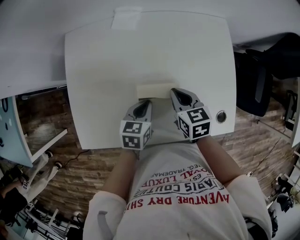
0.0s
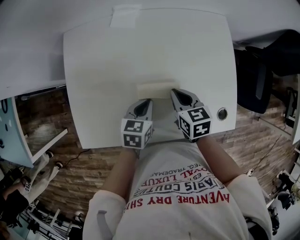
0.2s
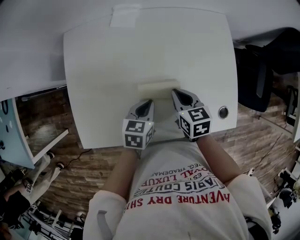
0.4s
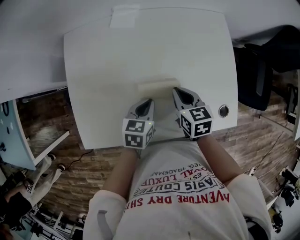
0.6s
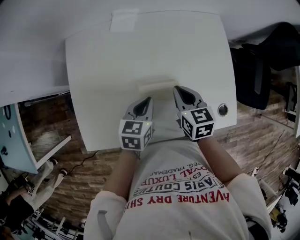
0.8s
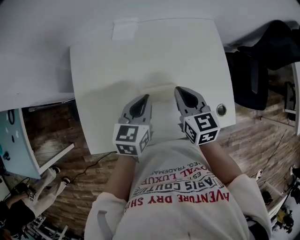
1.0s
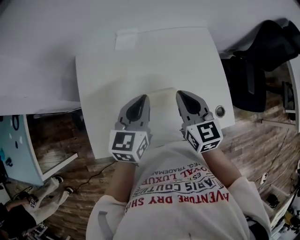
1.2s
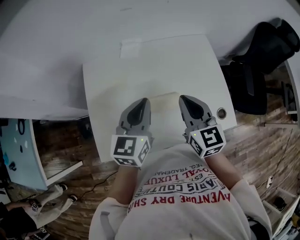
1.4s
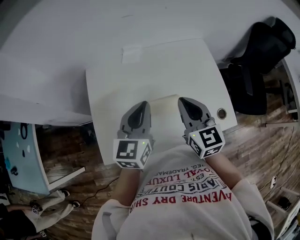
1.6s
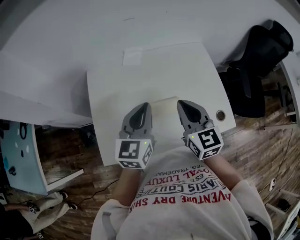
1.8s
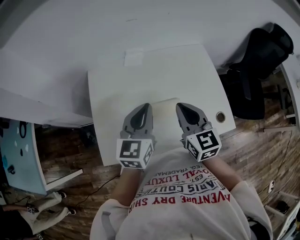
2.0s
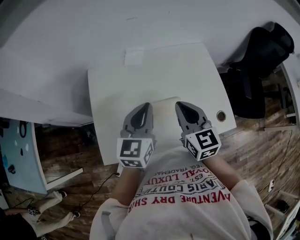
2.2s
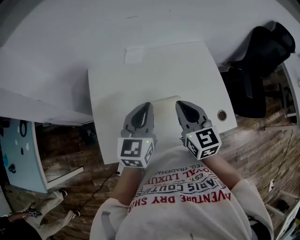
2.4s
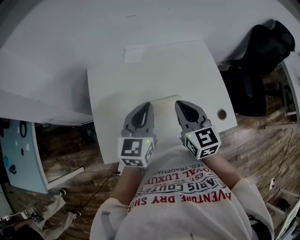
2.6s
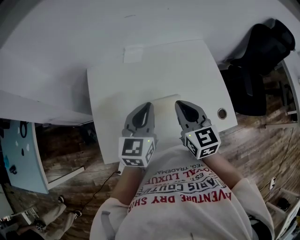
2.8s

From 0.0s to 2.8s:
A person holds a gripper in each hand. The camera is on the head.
From 0.0s to 1.4s: The two grippers go some 20 cm upward. The right gripper turns by about 30 degrees. The left gripper turns by approximately 30 degrees.
From 1.4s to 2.8s: The grippers make only small movements.

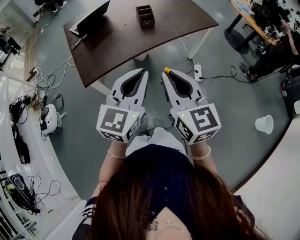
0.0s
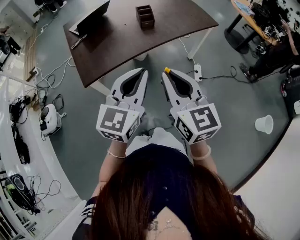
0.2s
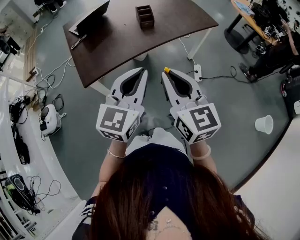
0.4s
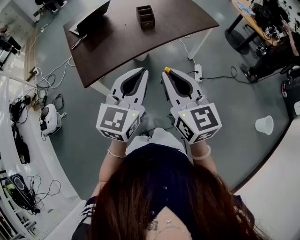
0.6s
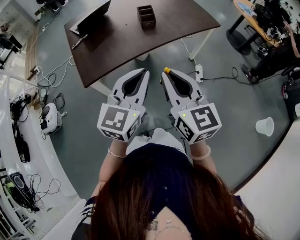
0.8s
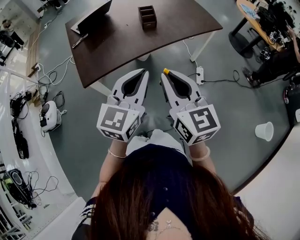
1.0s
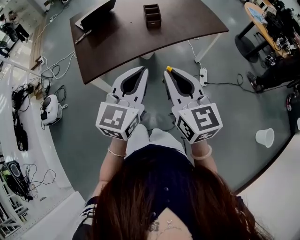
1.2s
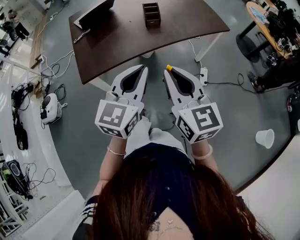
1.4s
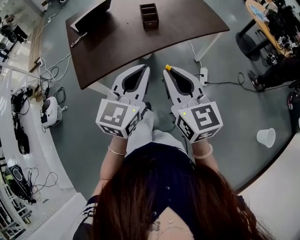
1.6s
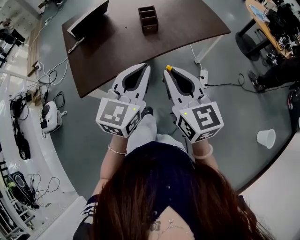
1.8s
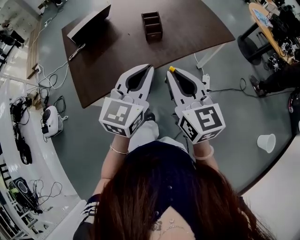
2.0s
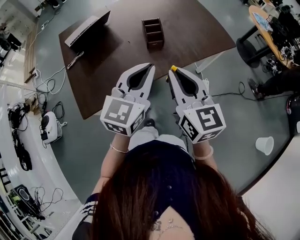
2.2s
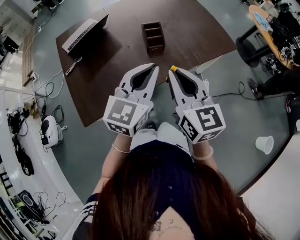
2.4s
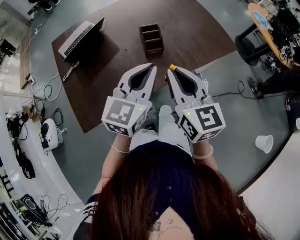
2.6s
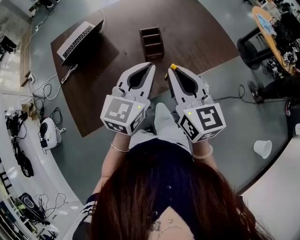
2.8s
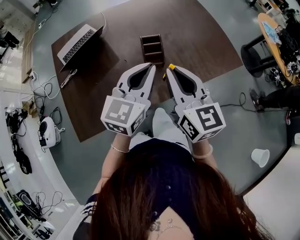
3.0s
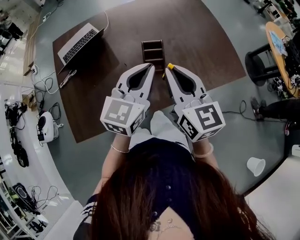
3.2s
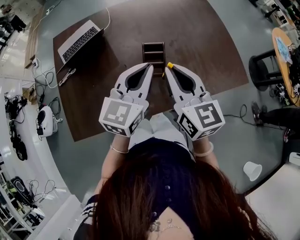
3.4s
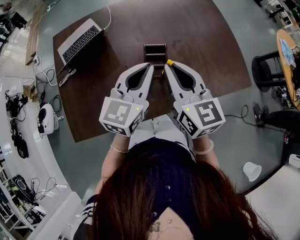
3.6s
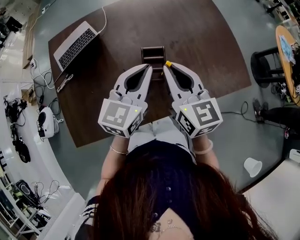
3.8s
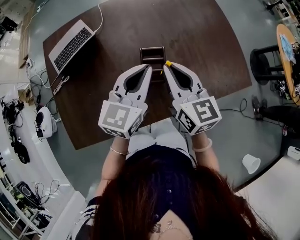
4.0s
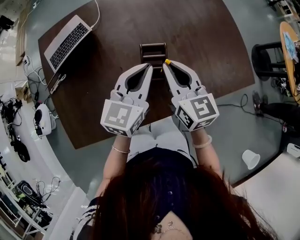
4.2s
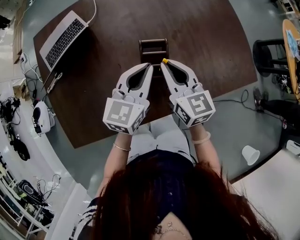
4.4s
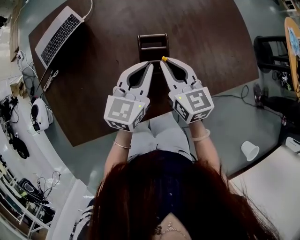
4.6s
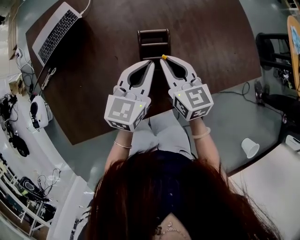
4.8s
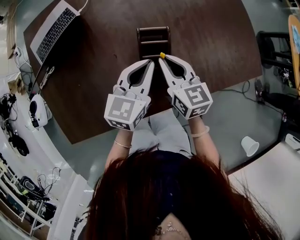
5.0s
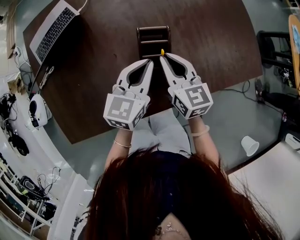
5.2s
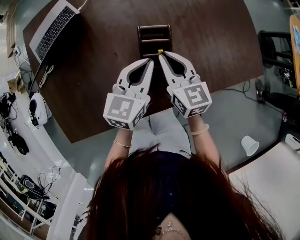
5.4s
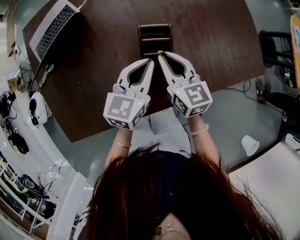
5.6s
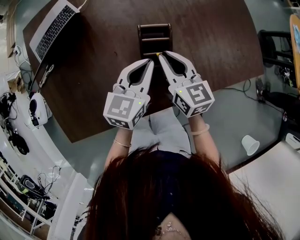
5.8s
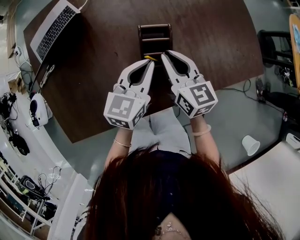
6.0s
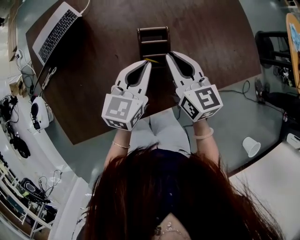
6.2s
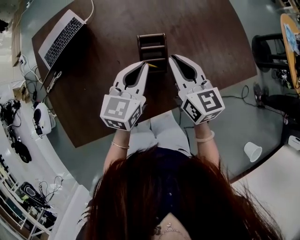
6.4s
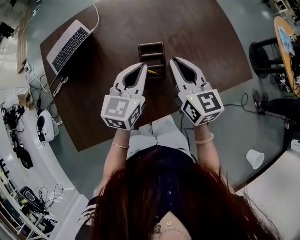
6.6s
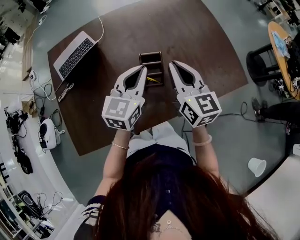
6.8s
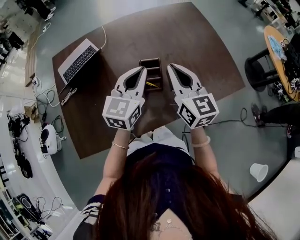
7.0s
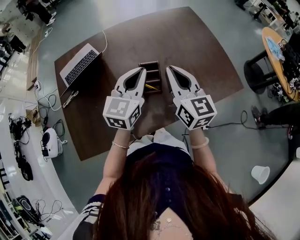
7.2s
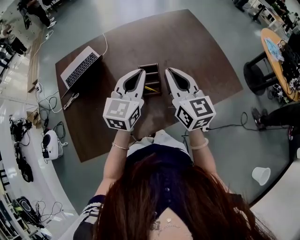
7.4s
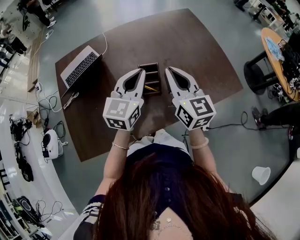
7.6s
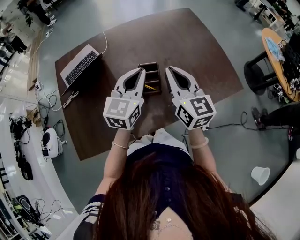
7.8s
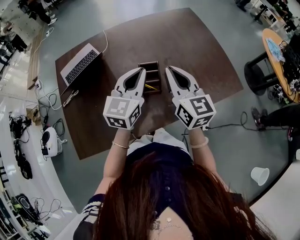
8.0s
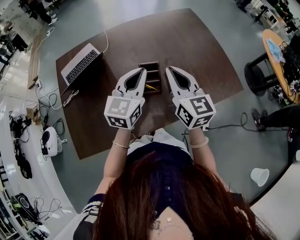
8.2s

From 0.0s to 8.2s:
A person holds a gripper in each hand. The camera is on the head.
From 0.0s to 1.6s: Both grippers travel together forward, about 10 cm.
From 1.6s to 3.2s: Both grippers travel together forward, approximately 40 cm.
From 3.2s to 5.0s: The two grippers go about 25 cm downward and forward. The right gripper rotates approximately 20 degrees.
From 5.0s to 6.6s: The left gripper shifts about 5 cm upward. The right gripper shifts roughly 10 cm upward.
From 6.6s to 8.2s: The two grippers go roughly 10 cm upward.

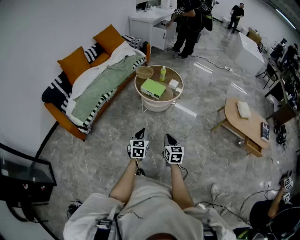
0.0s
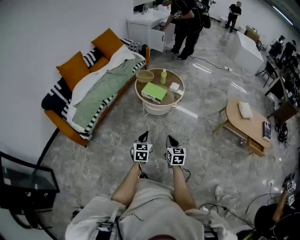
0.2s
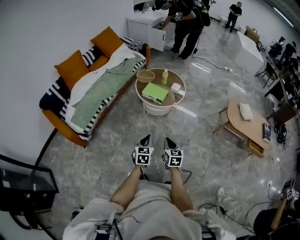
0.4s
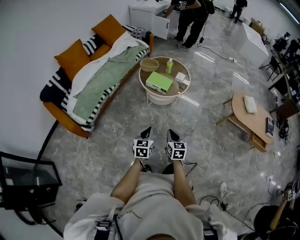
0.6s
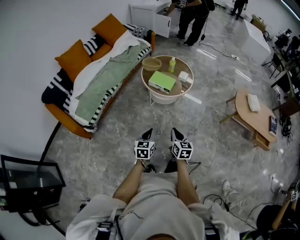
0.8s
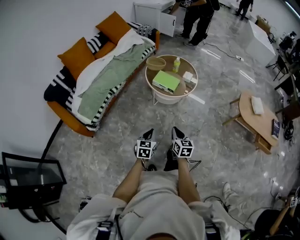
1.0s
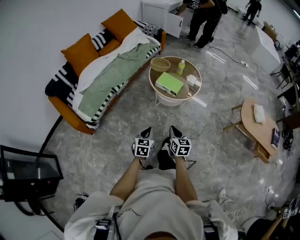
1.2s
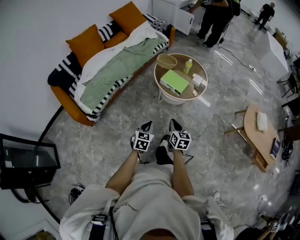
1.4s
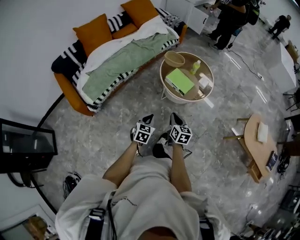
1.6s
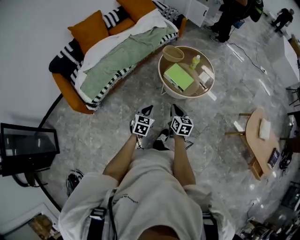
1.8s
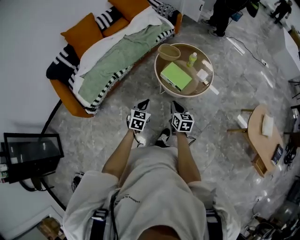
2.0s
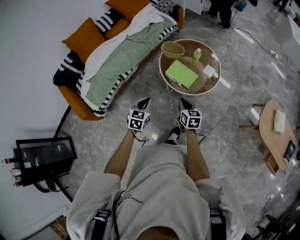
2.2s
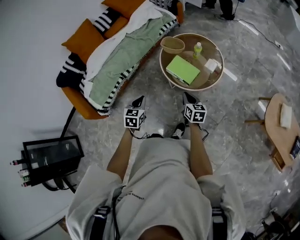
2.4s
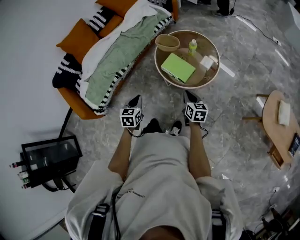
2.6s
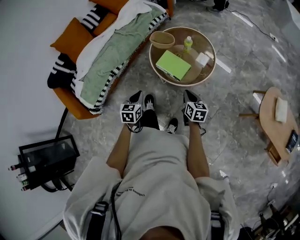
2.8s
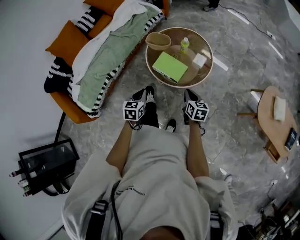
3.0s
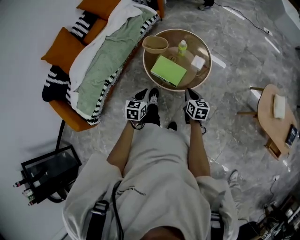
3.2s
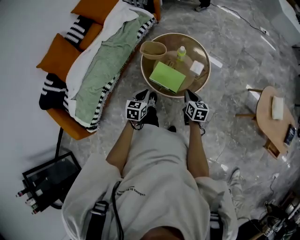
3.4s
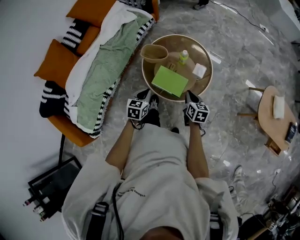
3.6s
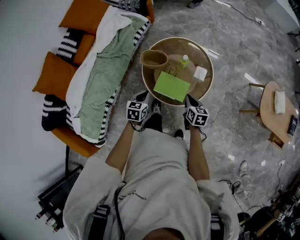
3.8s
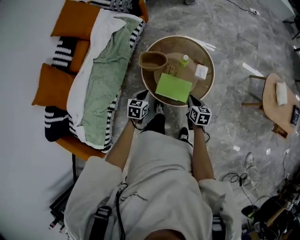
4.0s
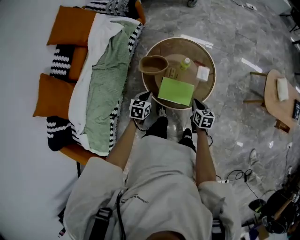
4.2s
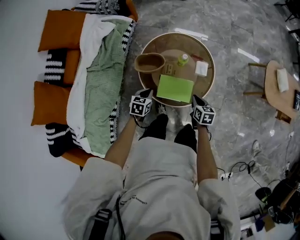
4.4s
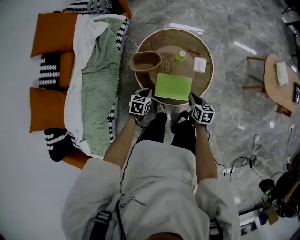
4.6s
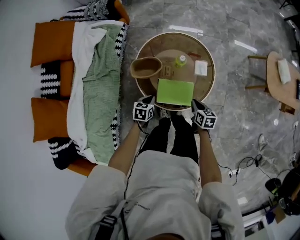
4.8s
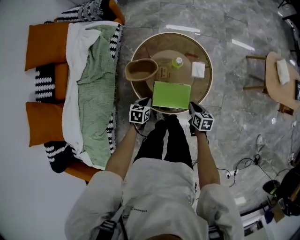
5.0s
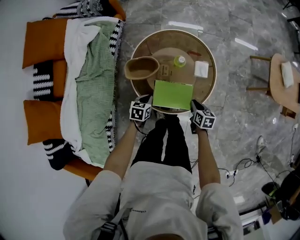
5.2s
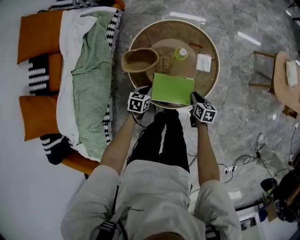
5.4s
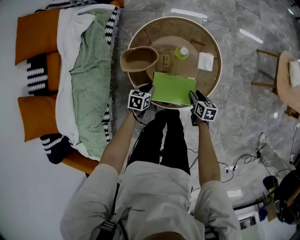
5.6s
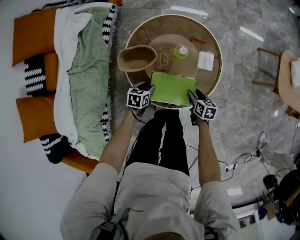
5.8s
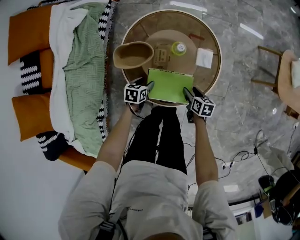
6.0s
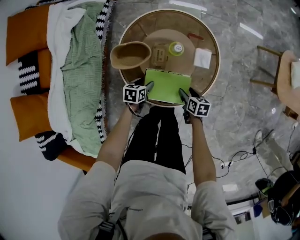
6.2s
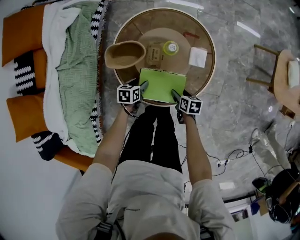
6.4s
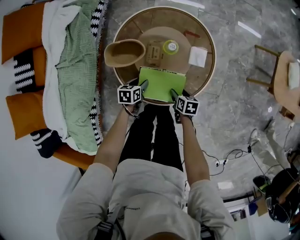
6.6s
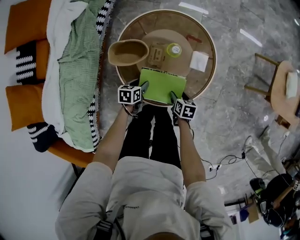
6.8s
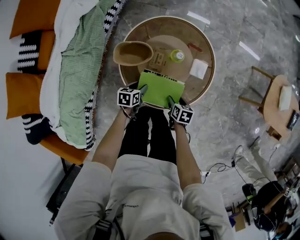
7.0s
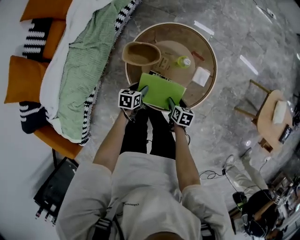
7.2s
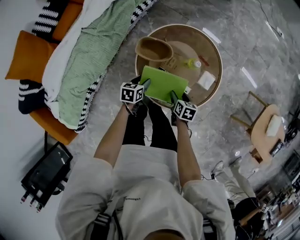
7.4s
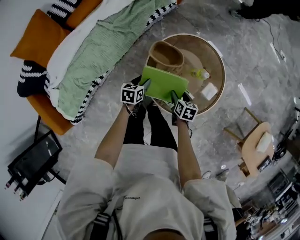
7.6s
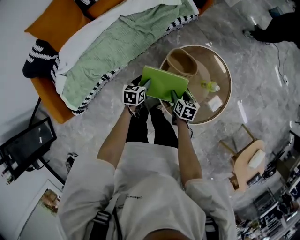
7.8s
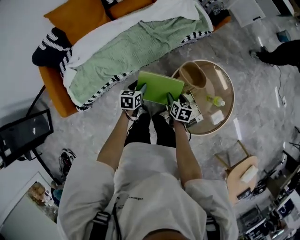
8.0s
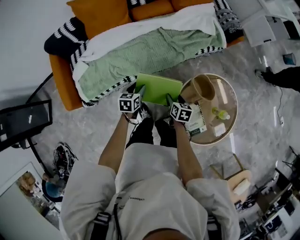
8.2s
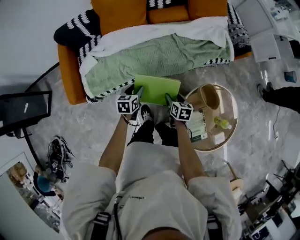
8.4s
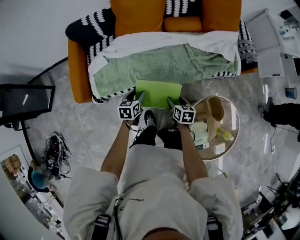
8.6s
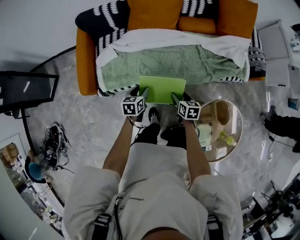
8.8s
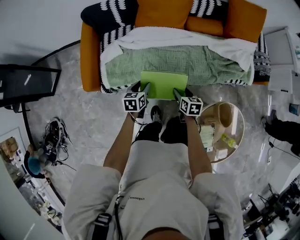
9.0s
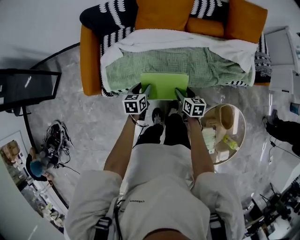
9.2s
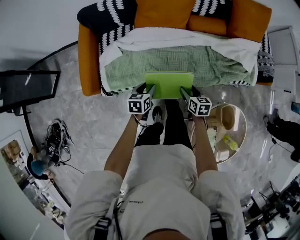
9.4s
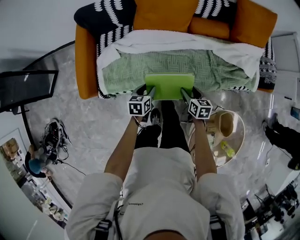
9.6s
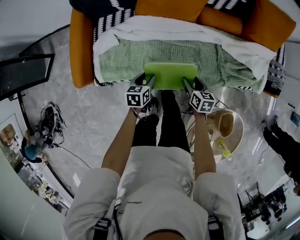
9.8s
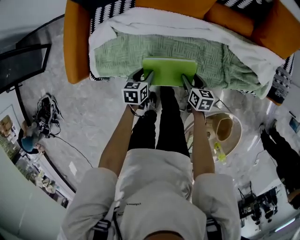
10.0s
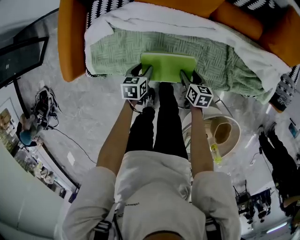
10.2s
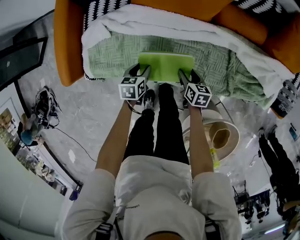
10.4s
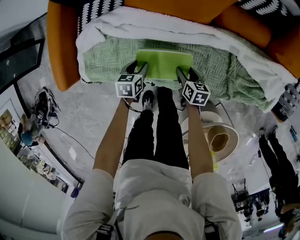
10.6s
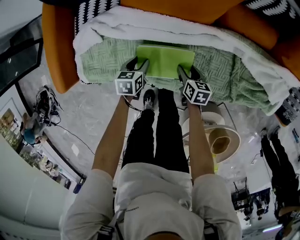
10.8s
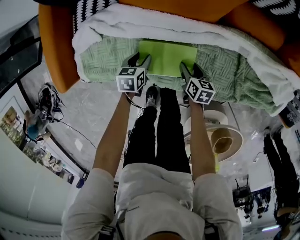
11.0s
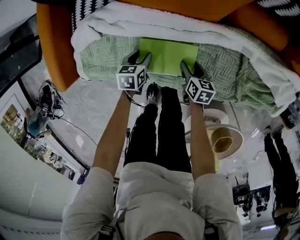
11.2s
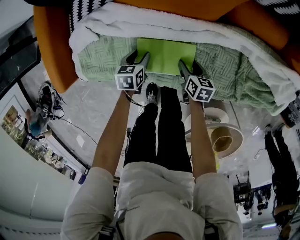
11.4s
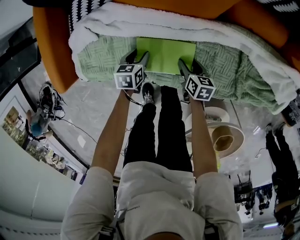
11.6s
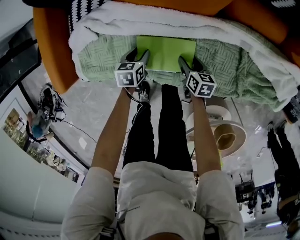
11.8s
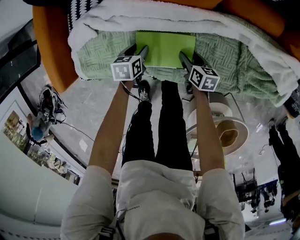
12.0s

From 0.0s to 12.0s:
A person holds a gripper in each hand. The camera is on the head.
From 0.0s to 1.6s: The right gripper is displaced forward and to the left by about 25 cm, while the left gripper shifts approximately 20 cm forward, downward and to the left.
From 1.6s to 3.0s: The left gripper moves forward, roughly 20 cm. Meanwhile the right gripper goes some 25 cm forward and to the right.
From 3.0s to 4.4s: The left gripper shifts by some 30 cm, and turns by approximately 30 degrees; the right gripper shifts by some 20 cm, and changes its angle by some 30 degrees.
From 4.4s to 6.0s: The grippers both shift downward by roughly 20 cm. The left gripper opens up, while the right gripper opens up.
From 6.0s to 7.6s: The left gripper shifts approximately 15 cm upward, and changes its angle by roughly 40 degrees. Meanwhile the right gripper shifts by about 15 cm, and turns by some 30 degrees.
From 7.6s to 9.0s: The two grippers travel together, approximately 50 cm. The right gripper rolls counterclockwise, seen from behind, by approximately 50 degrees; the left gripper rotates some 50 degrees.
From 9.0s to 10.4s: The two grippers go about 25 cm downward and forward.
From 10.4s to 12.0s: The right gripper heads downward, covering some 10 cm, while the left gripper heads downward and forward, covering some 10 cm.
